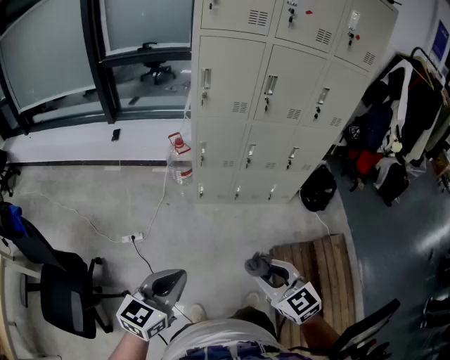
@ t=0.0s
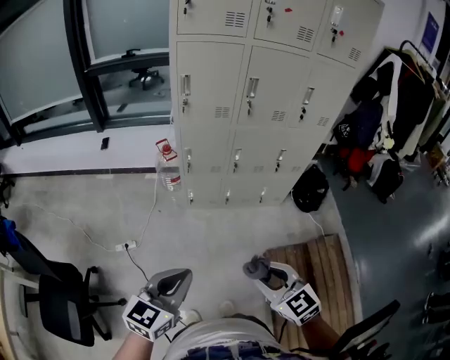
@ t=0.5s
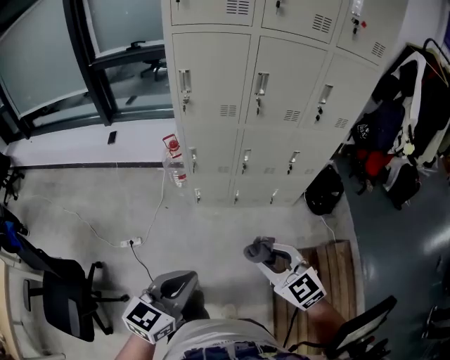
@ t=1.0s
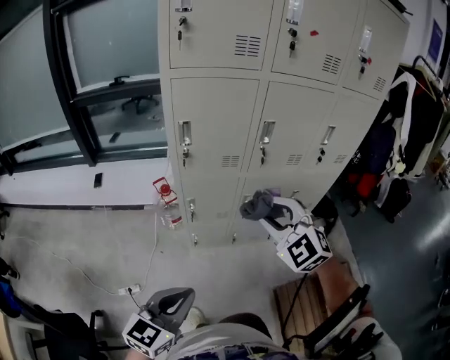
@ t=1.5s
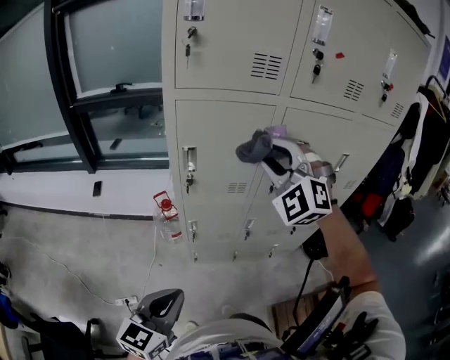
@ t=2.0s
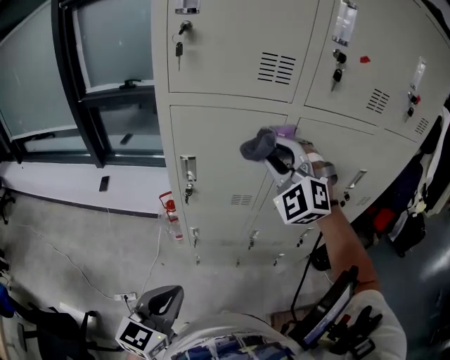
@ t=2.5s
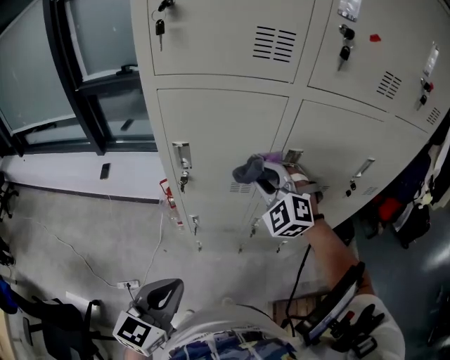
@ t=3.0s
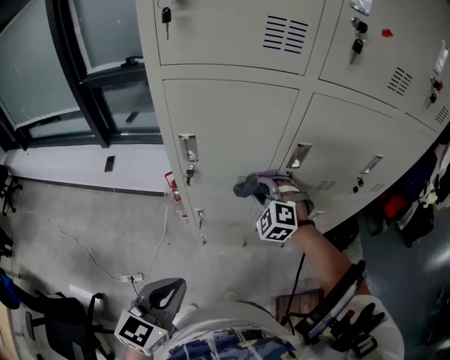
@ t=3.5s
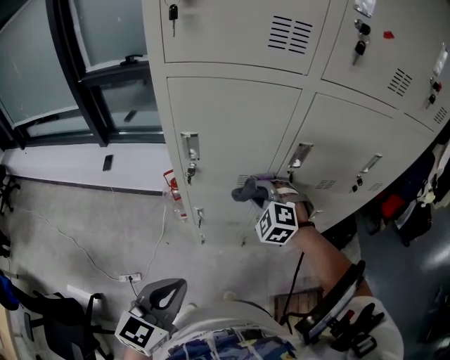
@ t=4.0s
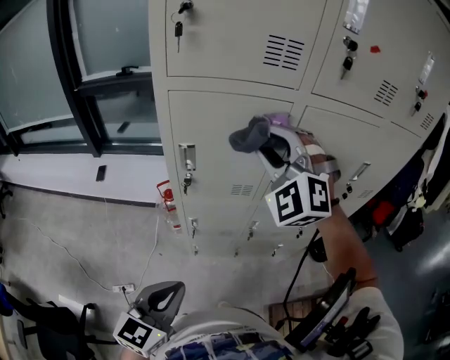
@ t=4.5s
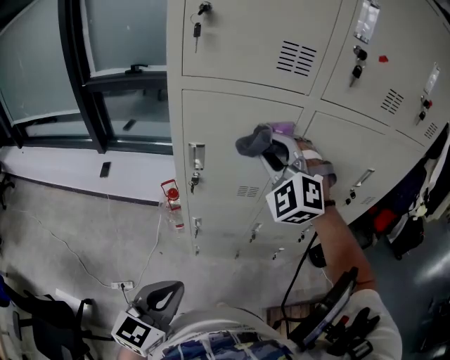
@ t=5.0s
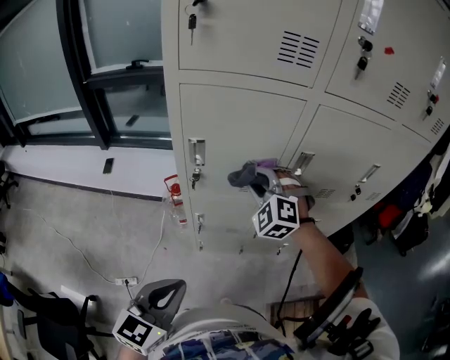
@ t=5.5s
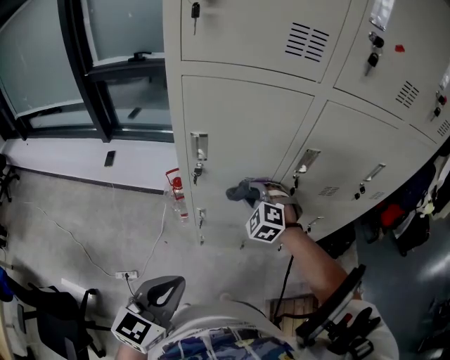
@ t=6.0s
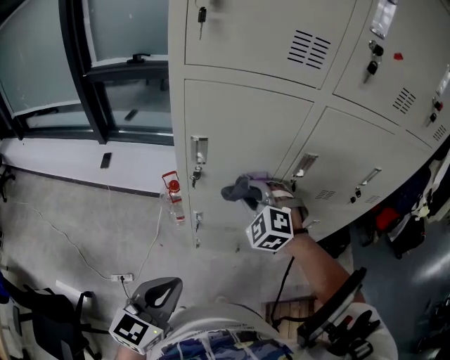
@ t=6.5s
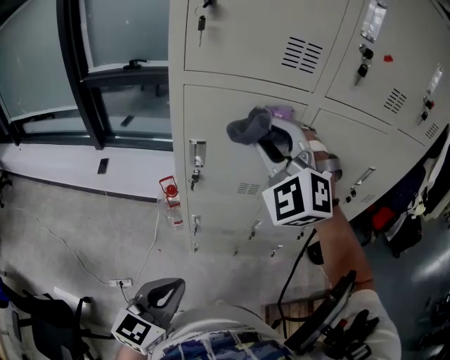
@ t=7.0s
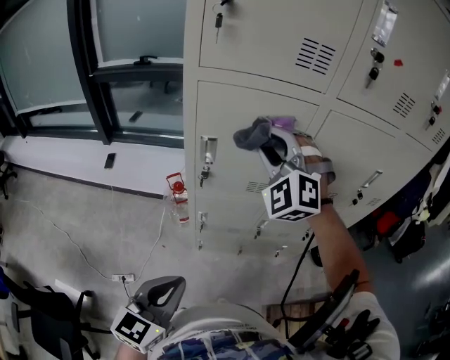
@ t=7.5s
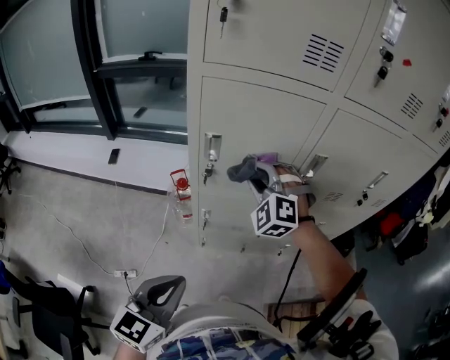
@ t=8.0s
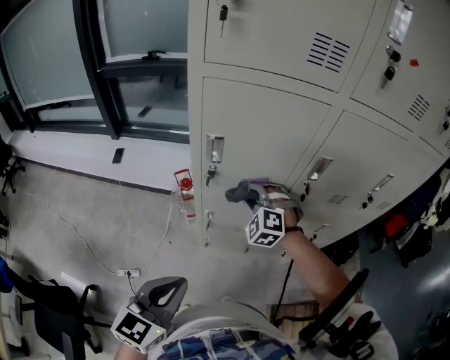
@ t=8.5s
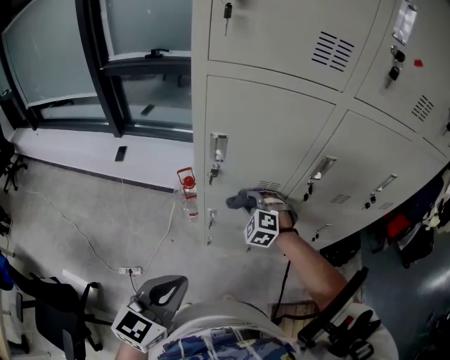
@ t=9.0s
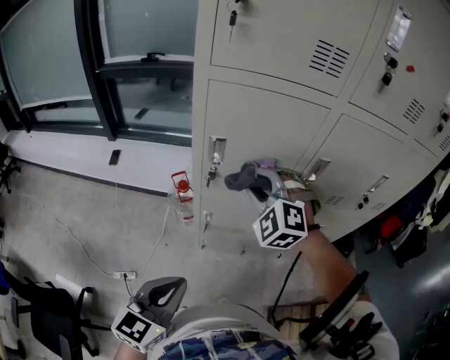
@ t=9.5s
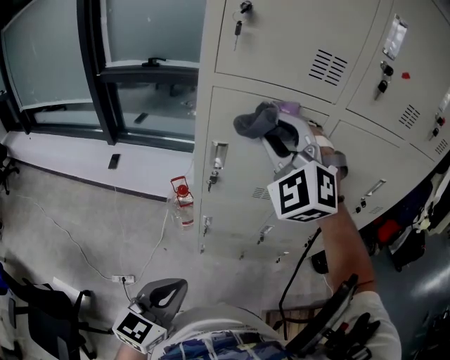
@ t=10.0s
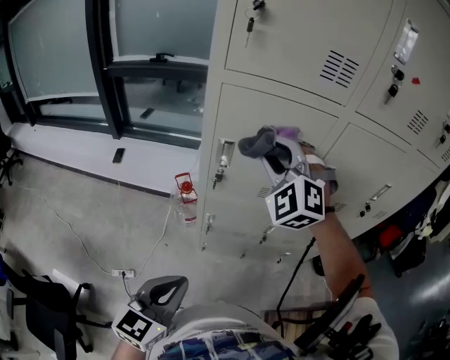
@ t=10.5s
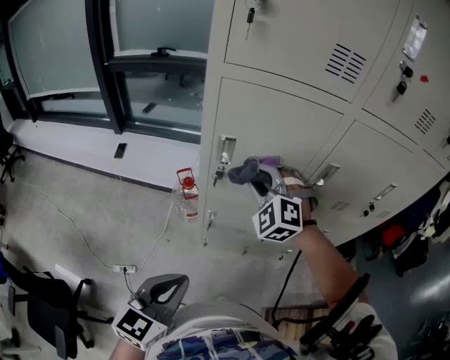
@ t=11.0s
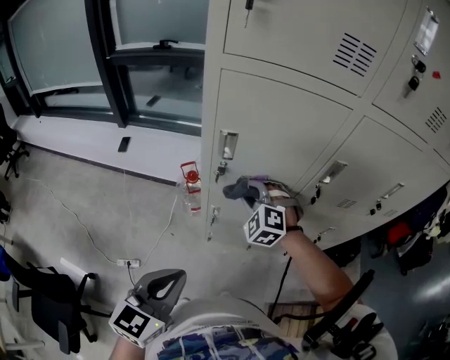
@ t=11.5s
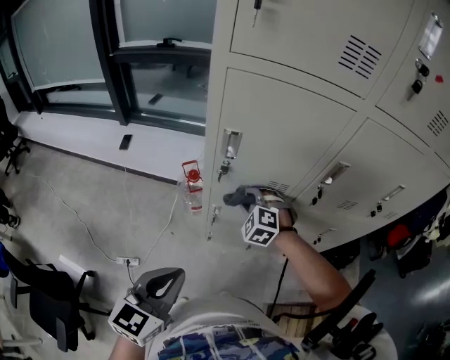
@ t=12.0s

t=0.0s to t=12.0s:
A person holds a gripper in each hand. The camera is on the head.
t=0.0s to t=2.0s: The right gripper is displaced forward and upward by approximately 60 cm, and rotates around the line of its fingers by some 60 degrees, counterclockwise from behind. Meanwhile the left gripper shifts roughly 35 cm forward.
t=2.0s to t=4.0s: The left gripper shifts about 5 cm forward, while the right gripper heads downward, covering approximately 30 cm, and tips its fingers downward by about 30 degrees.
t=4.0s to t=6.0s: The right gripper travels upward and back again, some 25 cm each way.
t=6.0s to t=8.0s: The right gripper goes about 15 cm upward.
t=8.0s to t=10.0s: The right gripper goes some 20 cm upward.
t=10.0s to t=12.0s: The right gripper heads downward, covering roughly 40 cm, and points its fingers roughly 40 degrees further downward.

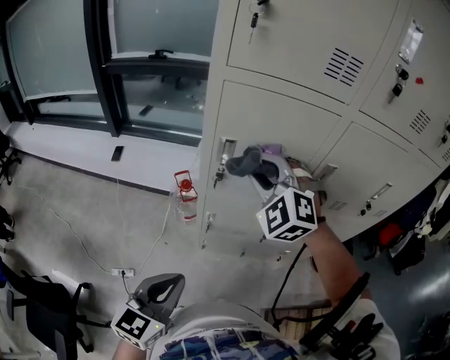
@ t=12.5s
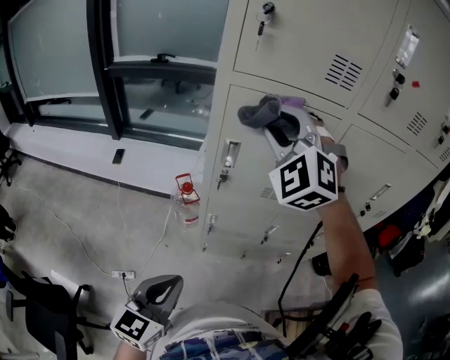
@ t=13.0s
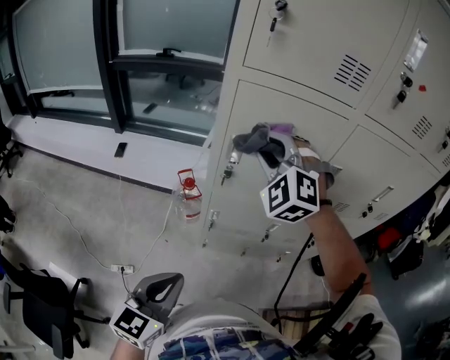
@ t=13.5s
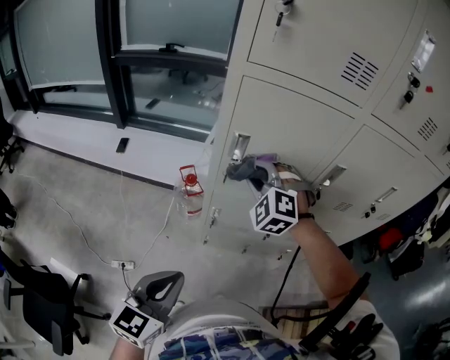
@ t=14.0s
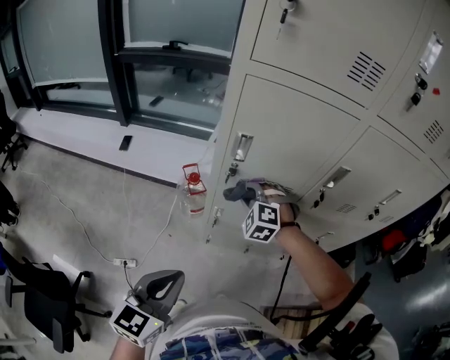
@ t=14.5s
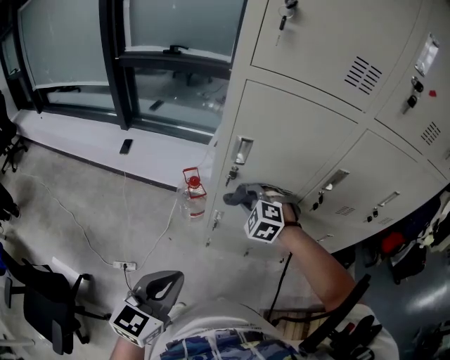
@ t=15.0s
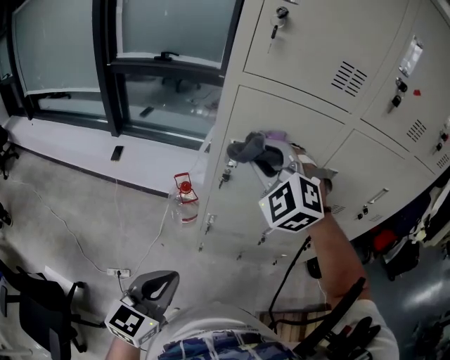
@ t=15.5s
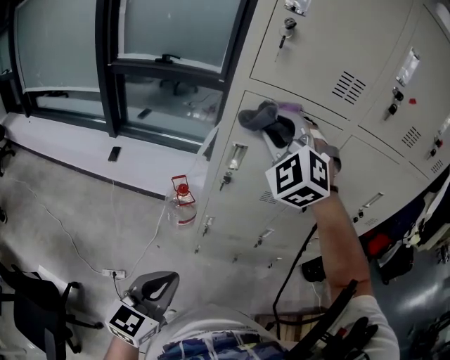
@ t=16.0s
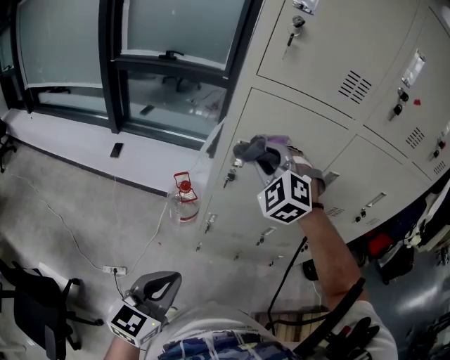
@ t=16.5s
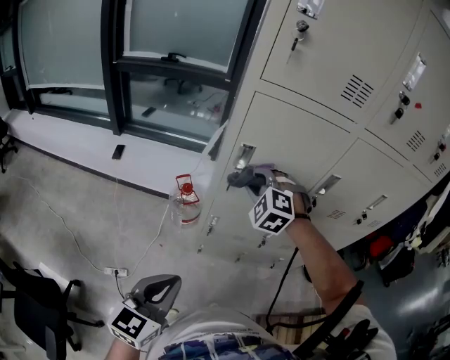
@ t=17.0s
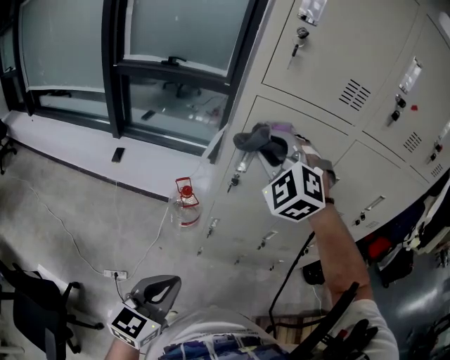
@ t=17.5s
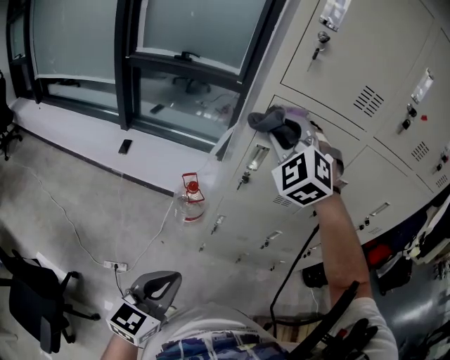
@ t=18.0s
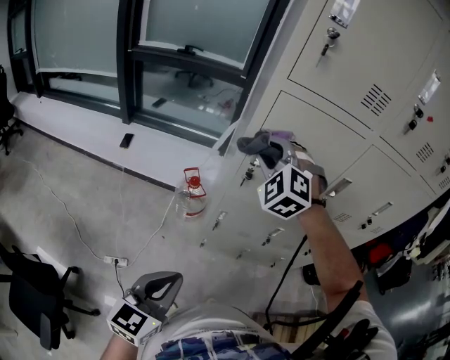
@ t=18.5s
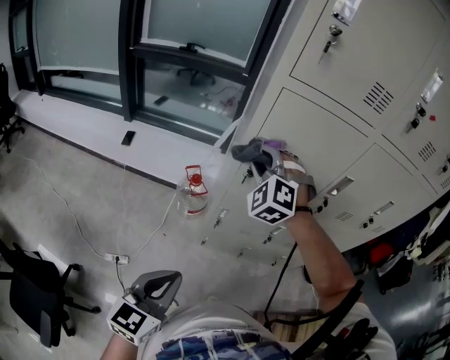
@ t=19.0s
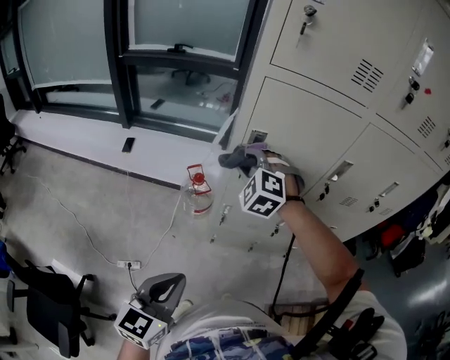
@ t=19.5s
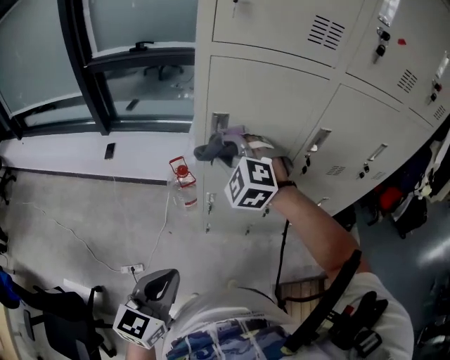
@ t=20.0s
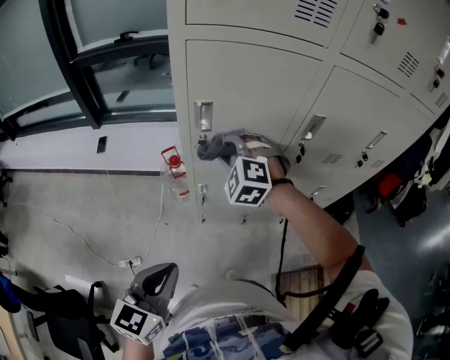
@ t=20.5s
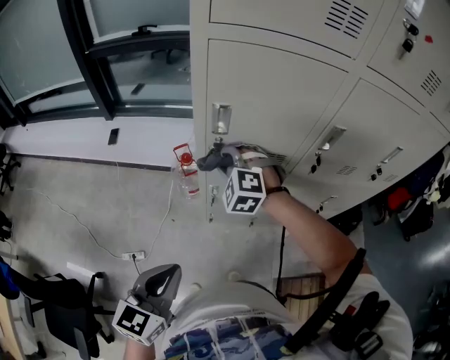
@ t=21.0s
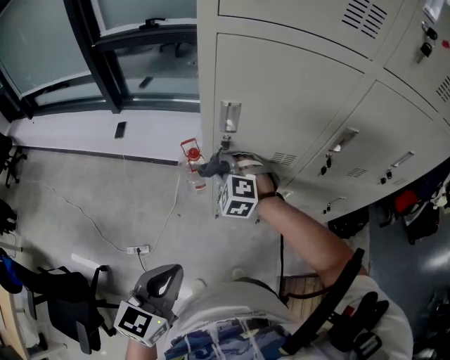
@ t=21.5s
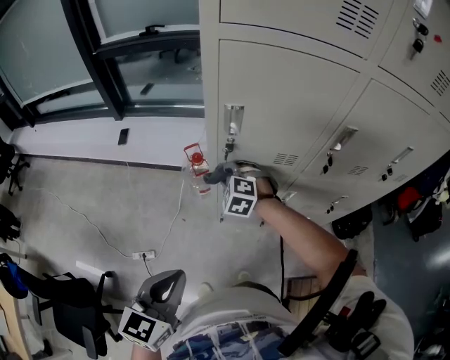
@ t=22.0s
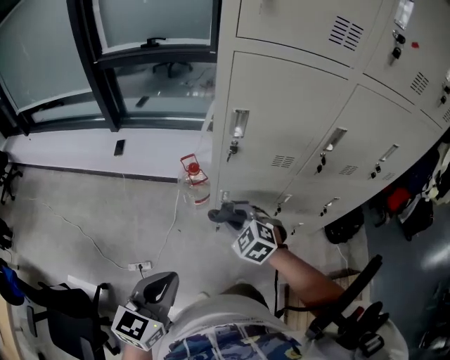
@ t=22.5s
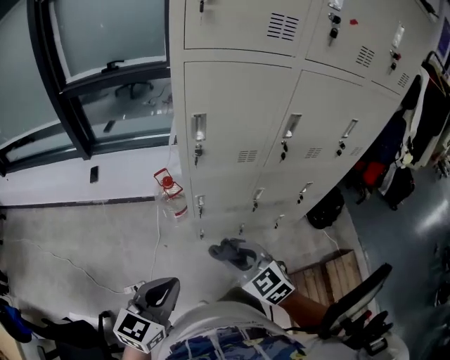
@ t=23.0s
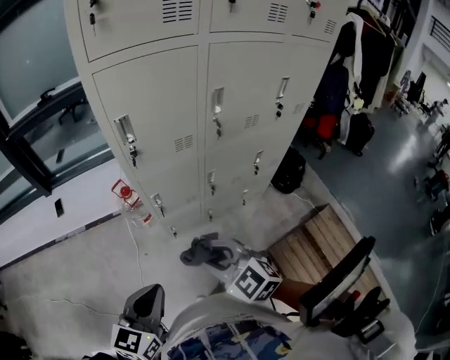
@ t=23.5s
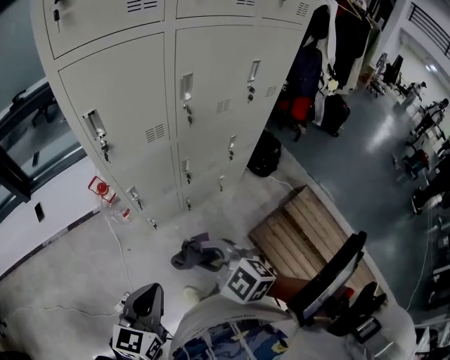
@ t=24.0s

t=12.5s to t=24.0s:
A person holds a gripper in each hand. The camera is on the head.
t=12.5s to t=14.5s: The right gripper is displaced downward by about 20 cm, and rotates about 20 degrees.
t=14.5s to t=16.5s: The right gripper heads upward, covering some 20 cm.
t=16.5s to t=18.5s: The right gripper goes up and down, some 20 cm each way, reversing 2 times.
t=18.5s to t=20.0s: The right gripper heads downward, covering roughly 10 cm.
t=20.0s to t=22.0s: The right gripper moves downward, approximately 20 cm.
t=22.0s to t=24.0s: The left gripper moves backward, roughly 10 cm, and turns by roughly 30 degrees. Meanwhile the right gripper is displaced backward by approximately 35 cm, and rotates around the line of its fingers by approximately 40 degrees, clockwise from behind.

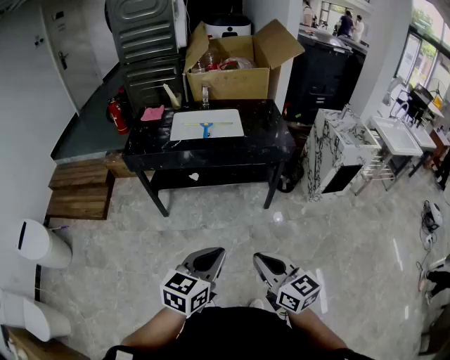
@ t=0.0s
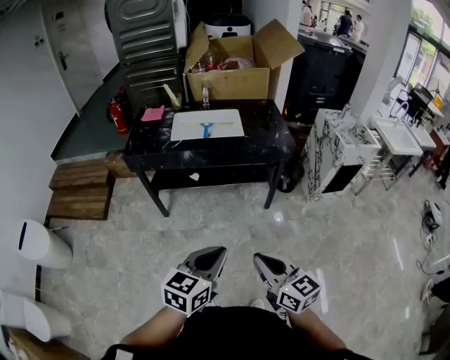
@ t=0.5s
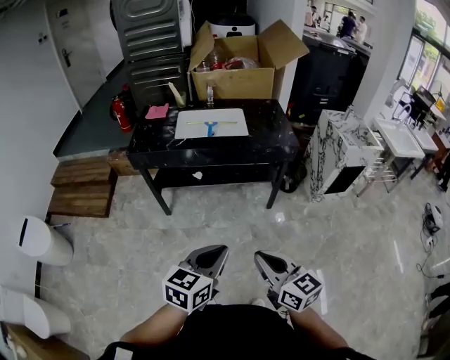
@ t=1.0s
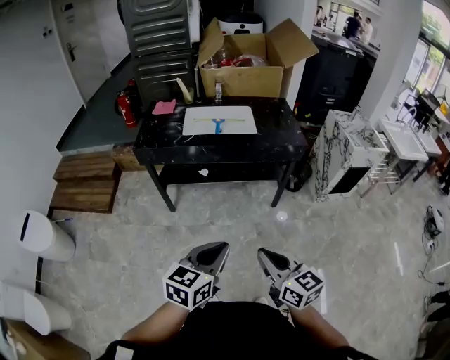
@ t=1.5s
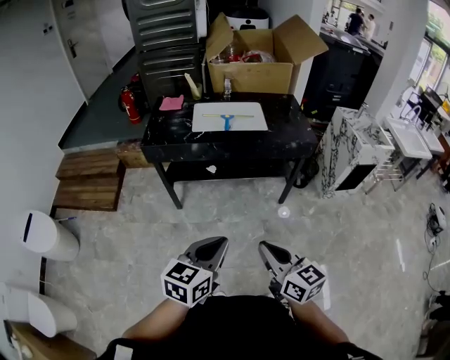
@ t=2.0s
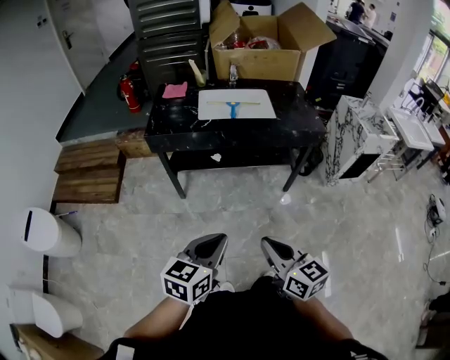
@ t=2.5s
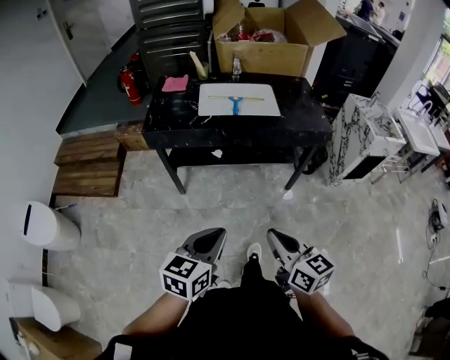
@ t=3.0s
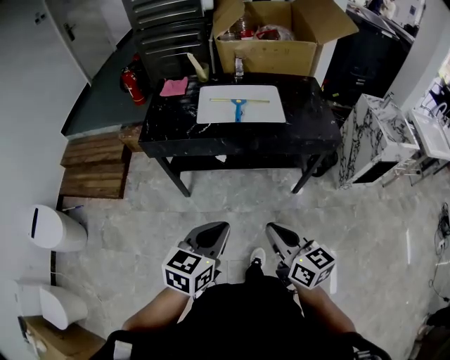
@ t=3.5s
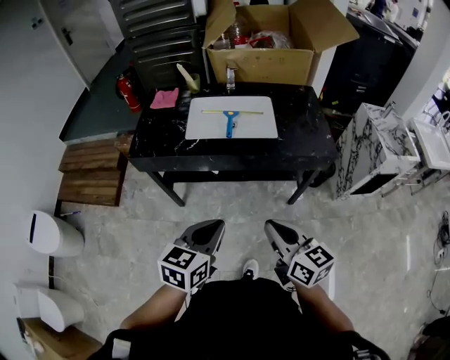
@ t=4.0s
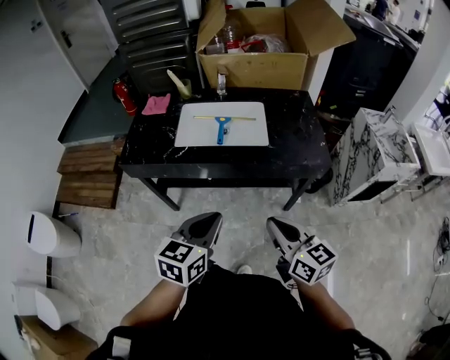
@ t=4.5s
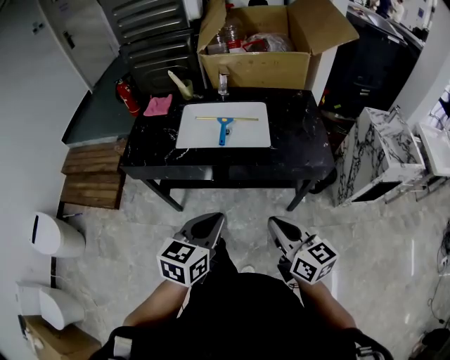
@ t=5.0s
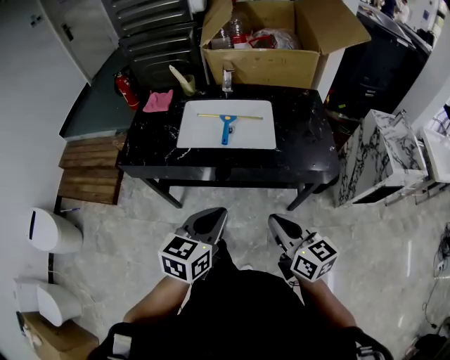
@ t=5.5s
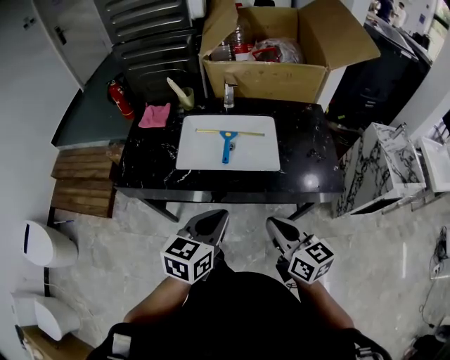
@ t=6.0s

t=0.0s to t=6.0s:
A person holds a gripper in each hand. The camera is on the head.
t=0.0s to t=2.0s: Both grippers travel together to the left, approximately 10 cm.
t=2.0s to t=4.0s: The grippers both shift forward by roughly 25 cm.
t=4.0s to t=6.0s: The two grippers go some 20 cm forward.
